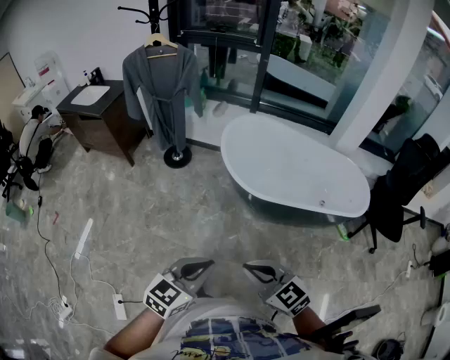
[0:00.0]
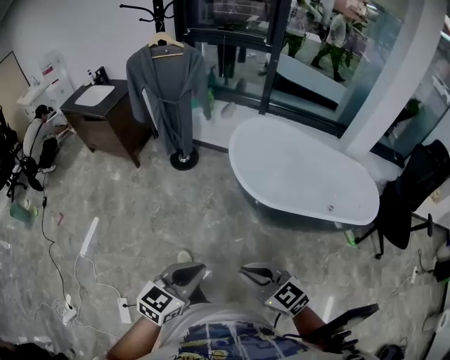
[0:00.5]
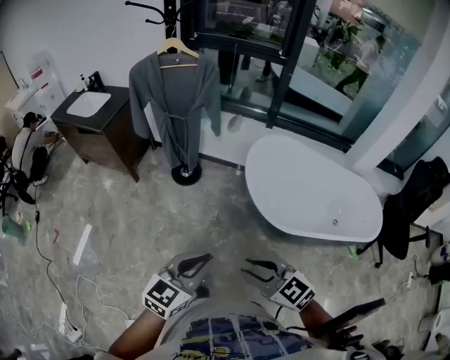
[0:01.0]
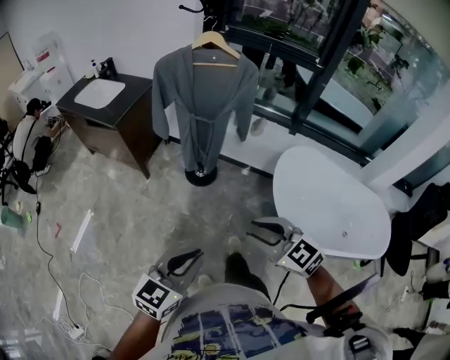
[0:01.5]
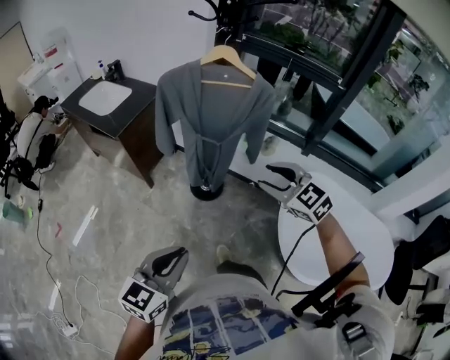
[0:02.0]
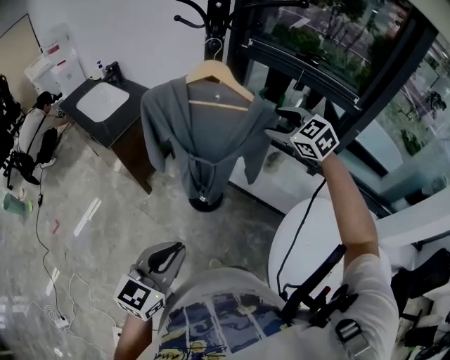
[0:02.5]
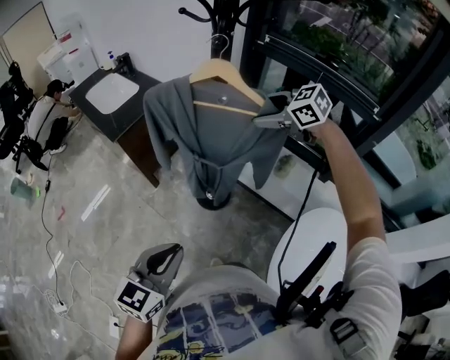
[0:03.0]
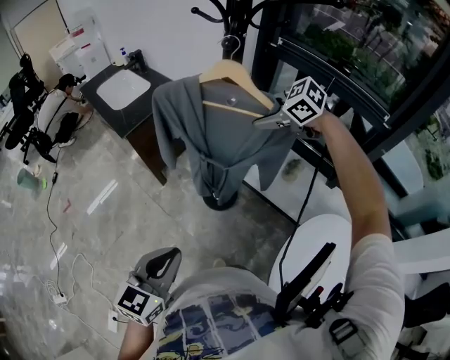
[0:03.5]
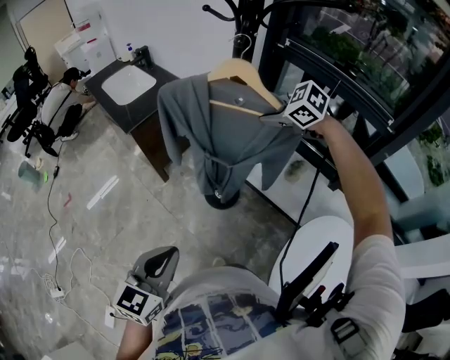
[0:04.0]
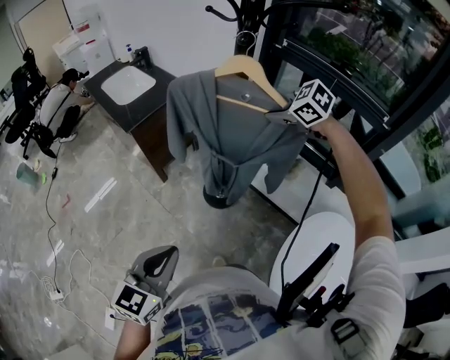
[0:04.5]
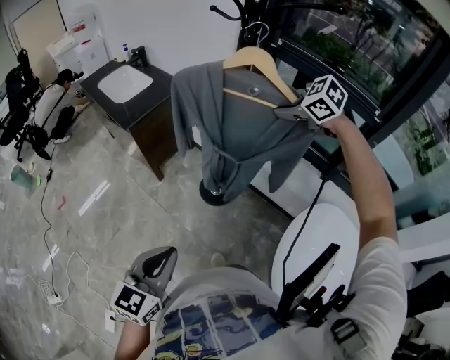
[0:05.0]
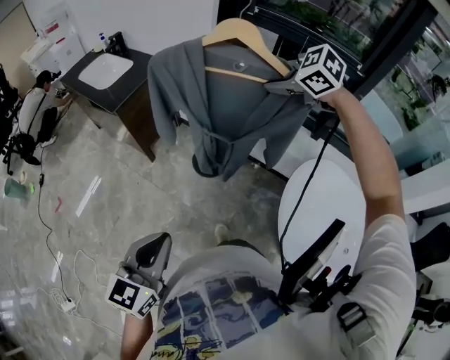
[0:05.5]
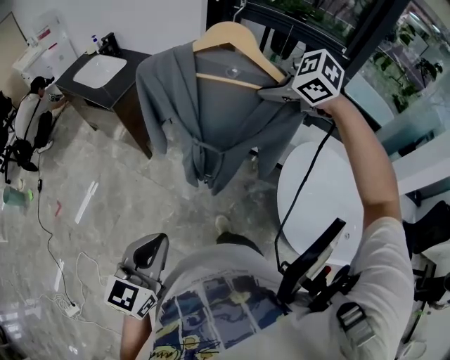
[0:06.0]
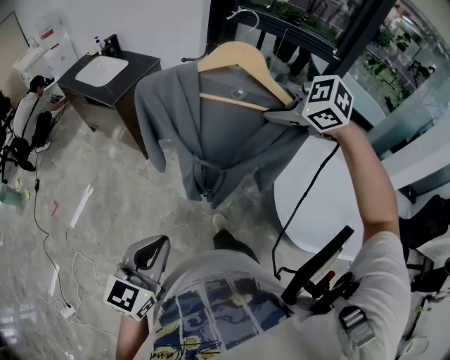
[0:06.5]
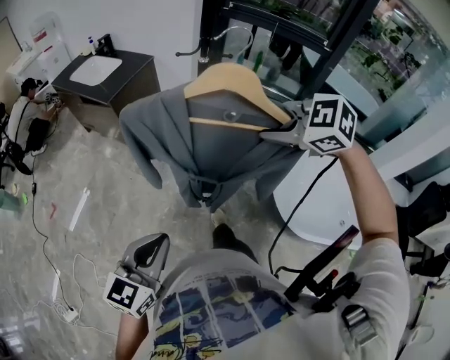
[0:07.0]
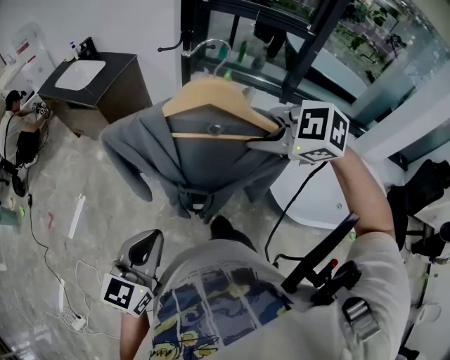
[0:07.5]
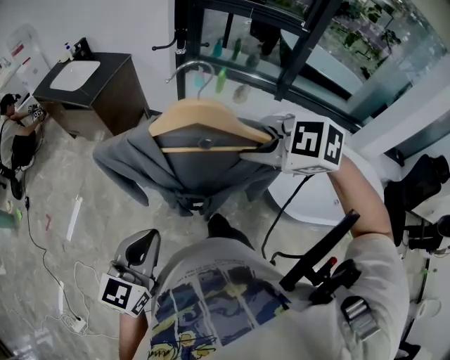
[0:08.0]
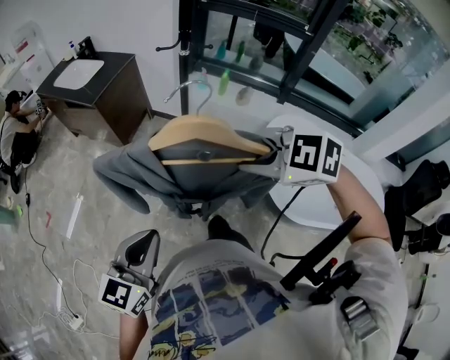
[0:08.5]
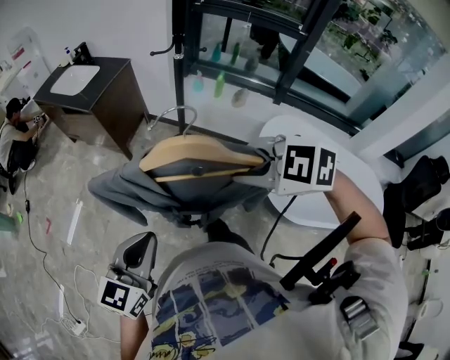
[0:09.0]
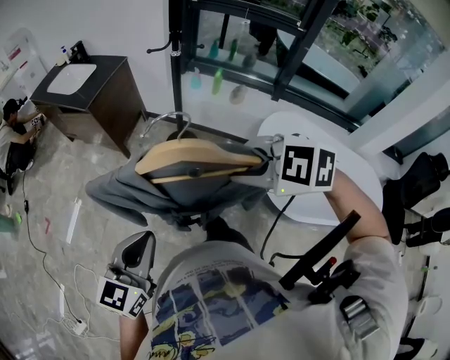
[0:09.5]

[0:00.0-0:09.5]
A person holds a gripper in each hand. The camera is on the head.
0:00.0 to 0:02.0: The pair of grippers is taken forward, roughly 60 cm. The left gripper turns by approximately 20 degrees, while the right gripper changes its angle by about 20 degrees, and opens up.
0:02.0 to 0:04.0: The left gripper moves roughly 15 cm, and rotates about 20 degrees. The right gripper ends up roughly 35 cm from where it was, turns by roughly 40 degrees, and closes.
0:04.0 to 0:05.5: The right gripper heads backward and upward, covering approximately 15 cm. Meanwhile the left gripper is displaced to the left and backward by approximately 15 cm.
0:05.5 to 0:07.5: The right gripper travels backward by approximately 35 cm. The left gripper travels backward and to the left by roughly 15 cm.
0:07.5 to 0:09.5: The right gripper is displaced backward by roughly 5 cm.

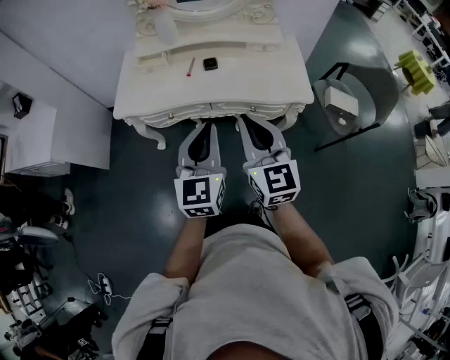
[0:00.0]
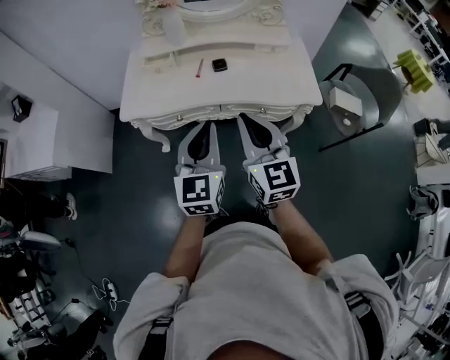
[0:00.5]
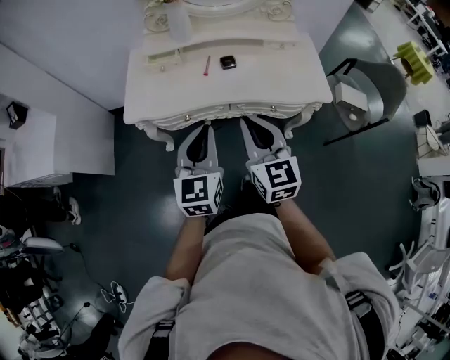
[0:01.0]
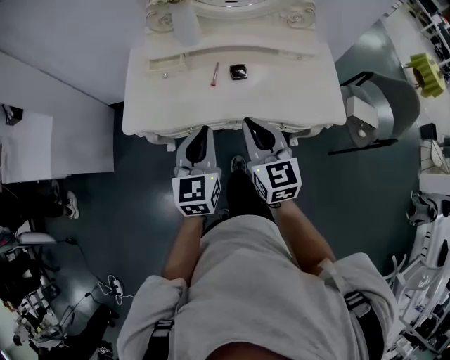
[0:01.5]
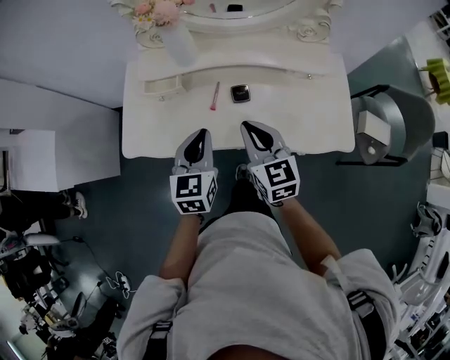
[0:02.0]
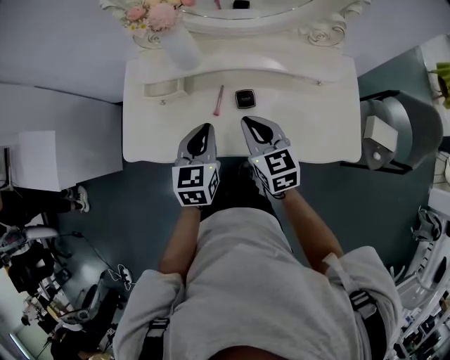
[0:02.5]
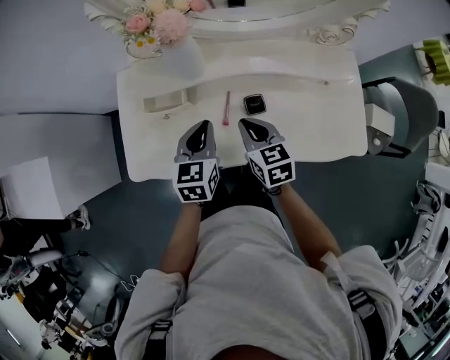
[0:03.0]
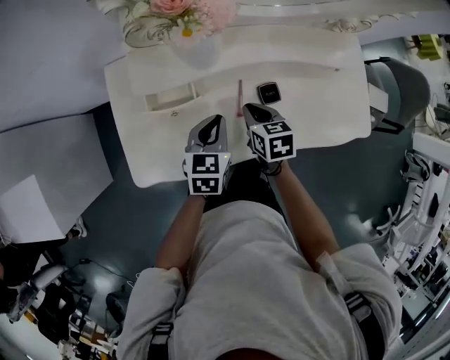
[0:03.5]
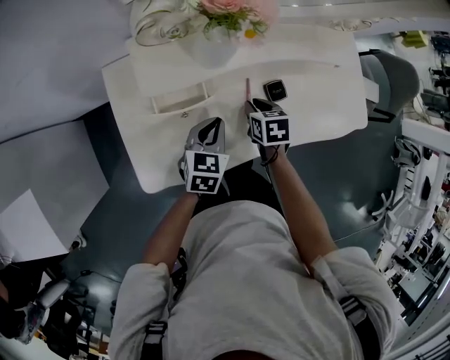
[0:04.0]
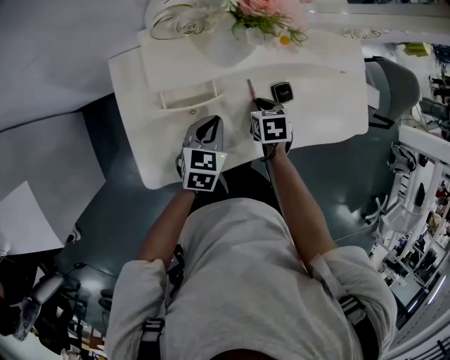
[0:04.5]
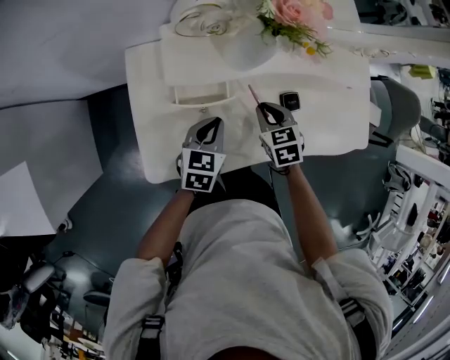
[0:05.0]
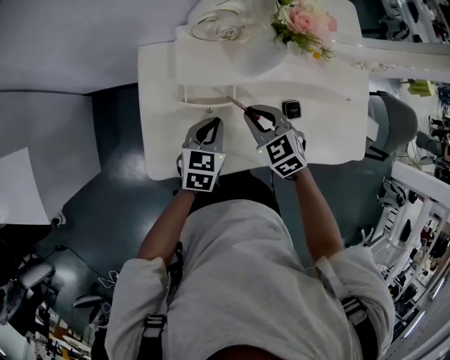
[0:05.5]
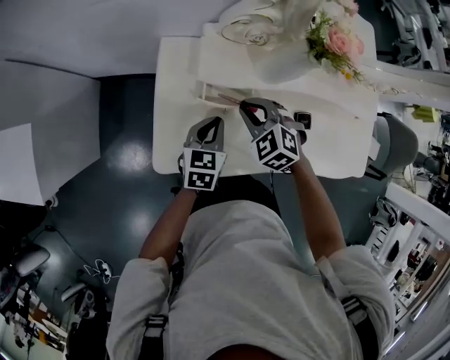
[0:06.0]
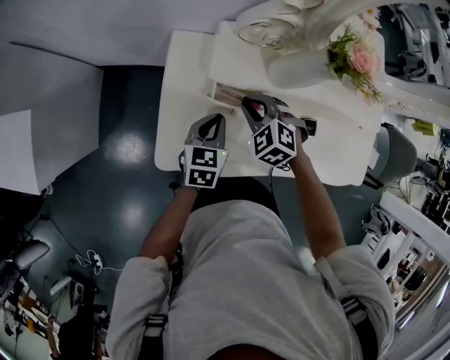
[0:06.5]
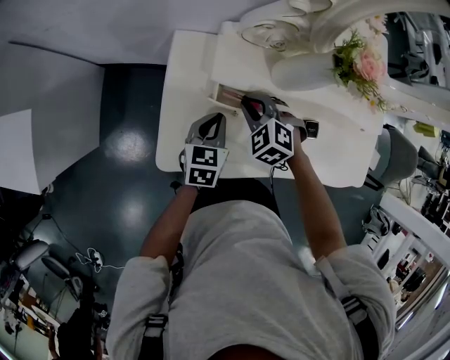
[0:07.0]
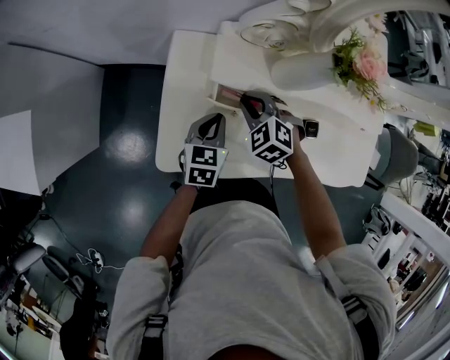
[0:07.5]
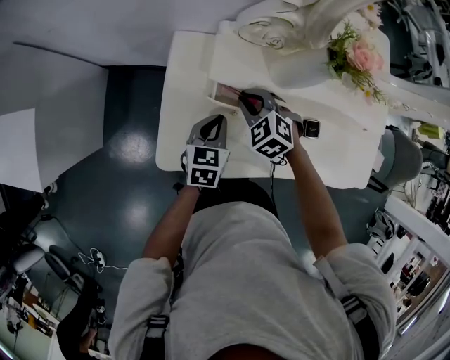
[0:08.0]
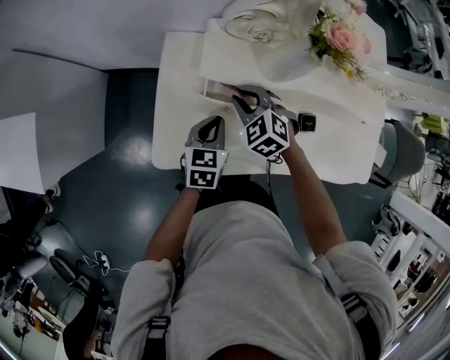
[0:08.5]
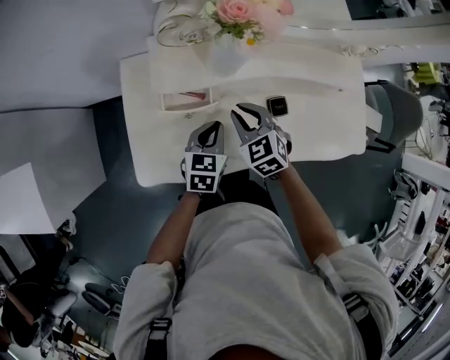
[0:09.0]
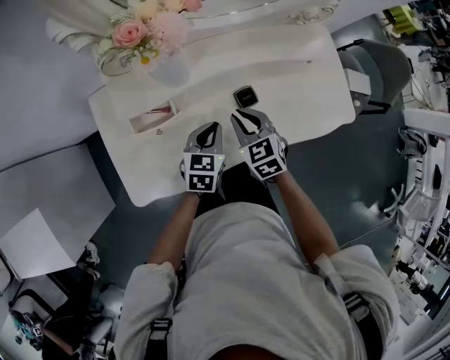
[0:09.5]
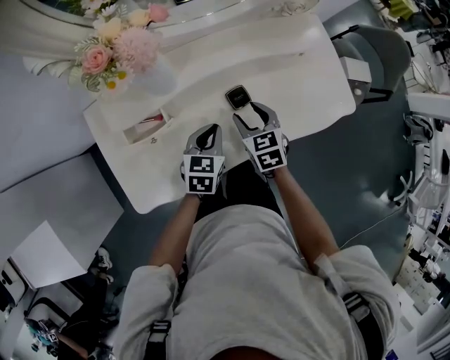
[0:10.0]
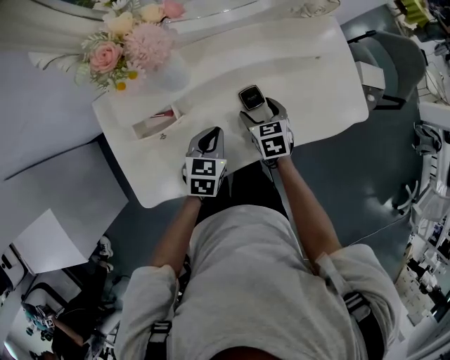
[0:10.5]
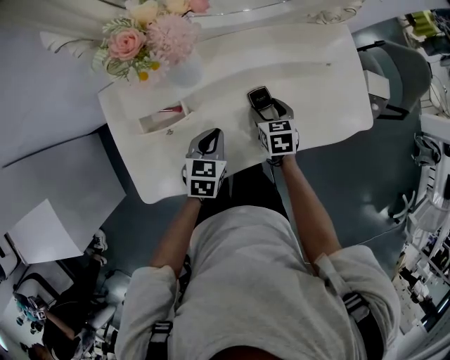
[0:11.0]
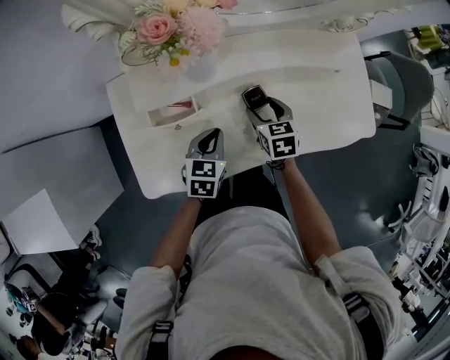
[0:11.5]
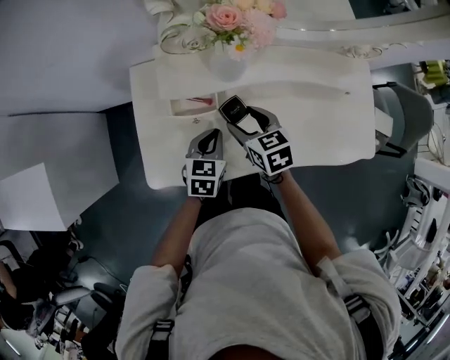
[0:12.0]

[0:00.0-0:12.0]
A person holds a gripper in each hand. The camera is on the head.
0:00.0 to 0:02.0: Both grippers travel together forward and downward, about 35 cm.
0:02.0 to 0:04.0: The right gripper shifts some 20 cm downward, and tilts its fingers some 40 degrees downward, while the left gripper shifts by roughly 25 cm, and changes its angle by approximately 30 degrees.
0:04.0 to 0:06.0: The left gripper moves some 10 cm. The right gripper changes place by roughly 20 cm, and twists about 70 degrees counterclockwise, seen from behind.
0:06.0 to 0:08.0: The right gripper changes place by about 5 cm.
0:08.0 to 0:10.0: The left gripper ends up about 25 cm from where it was, and rotates about 30 degrees. The right gripper ends up some 30 cm from where it was, rolls clockwise, seen from behind, by approximately 60 degrees, and opens up.
0:10.0 to 0:12.0: The left gripper ends up about 15 cm from where it was. Meanwhile the right gripper moves some 15 cm, and rotates about 20 degrees.

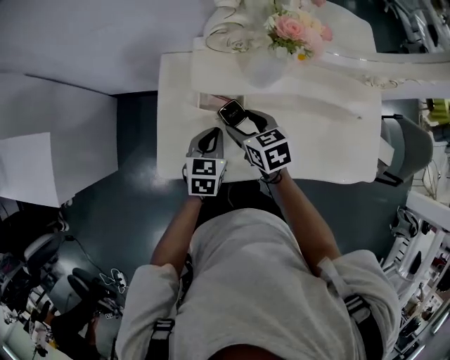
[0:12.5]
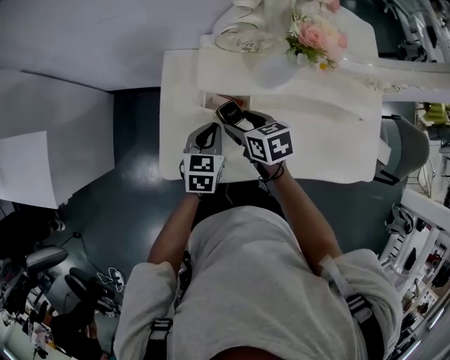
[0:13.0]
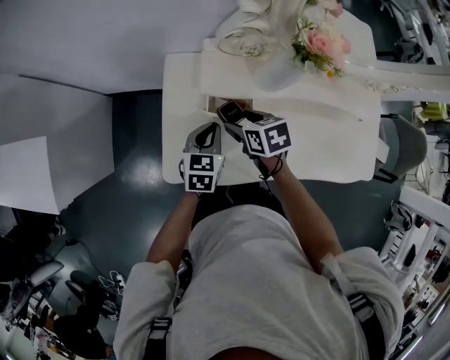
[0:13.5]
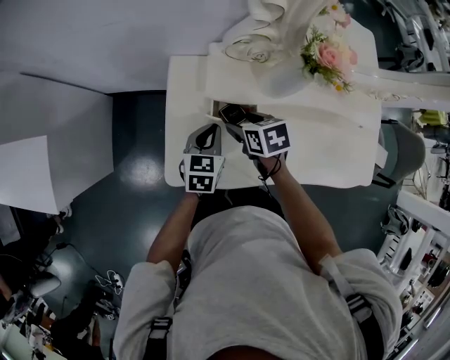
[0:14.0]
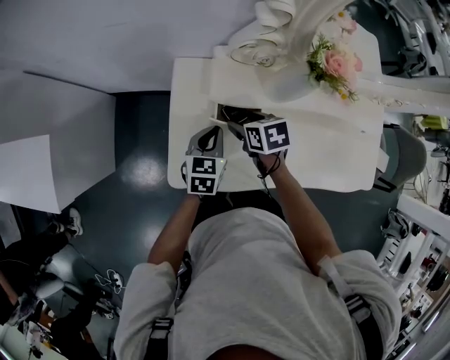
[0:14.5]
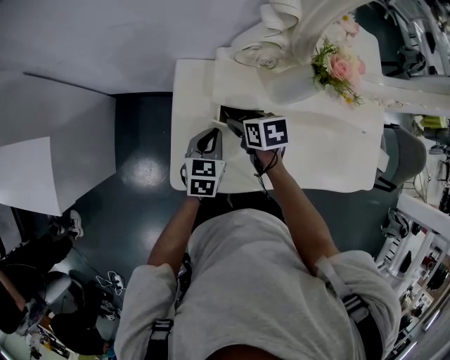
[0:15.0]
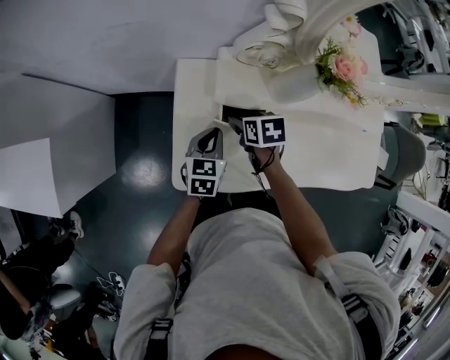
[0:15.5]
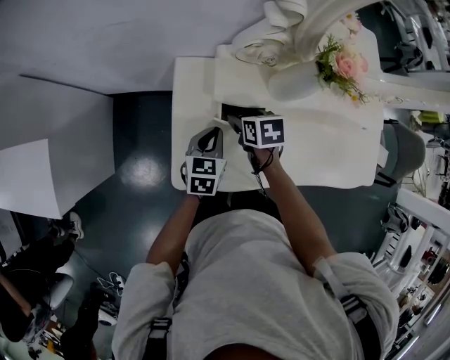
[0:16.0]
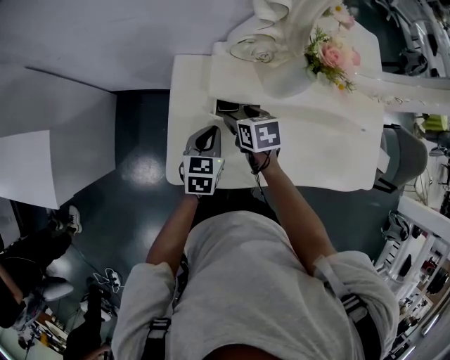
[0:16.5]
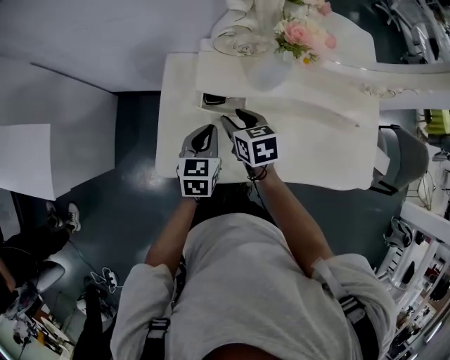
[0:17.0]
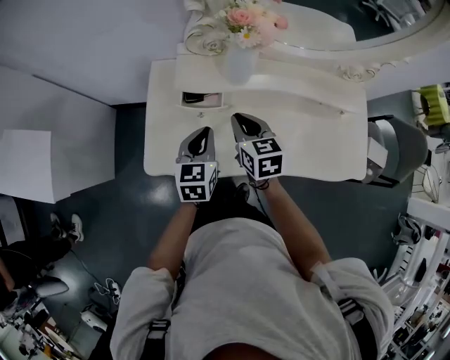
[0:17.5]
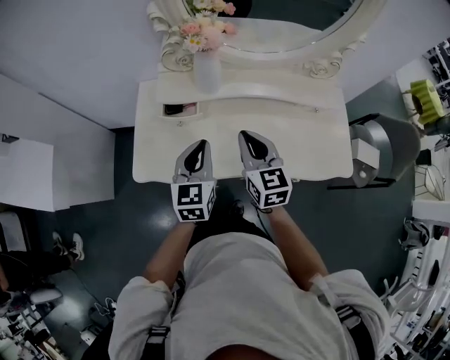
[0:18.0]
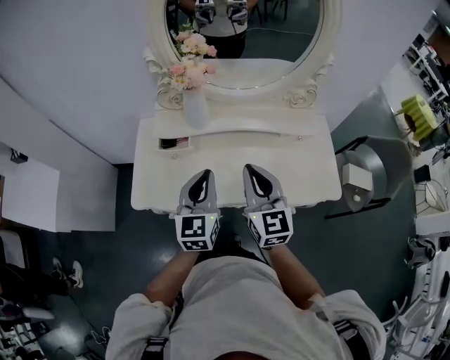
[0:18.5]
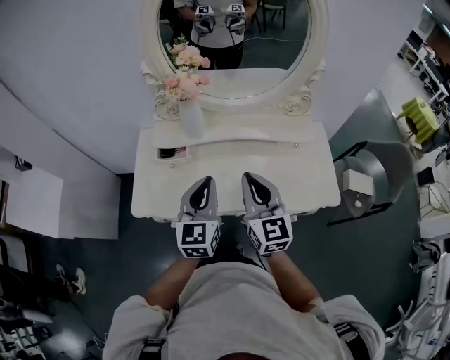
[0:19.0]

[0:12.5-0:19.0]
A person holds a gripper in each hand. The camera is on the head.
0:12.5 to 0:14.5: The two grippers go about 5 cm forward.
0:14.5 to 0:17.0: The right gripper moves roughly 5 cm. The left gripper changes place by approximately 5 cm.
0:17.0 to 0:19.0: The two grippers go approximately 35 cm to the right, upward and backward. The left gripper changes its angle by about 30 degrees, while the right gripper angles its fingers upward, by approximately 40 degrees, and closes up.
